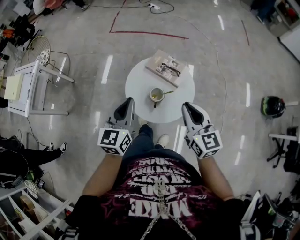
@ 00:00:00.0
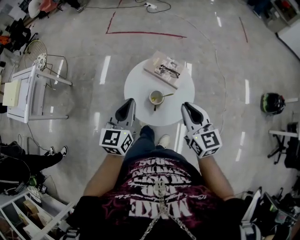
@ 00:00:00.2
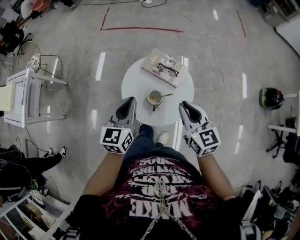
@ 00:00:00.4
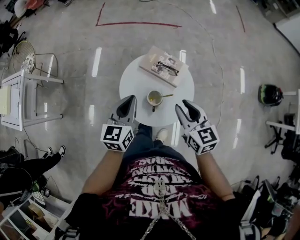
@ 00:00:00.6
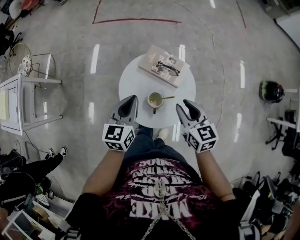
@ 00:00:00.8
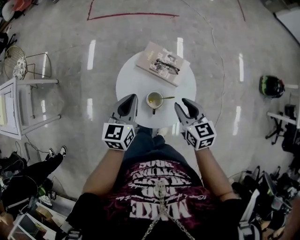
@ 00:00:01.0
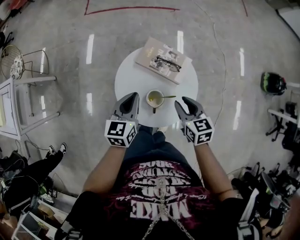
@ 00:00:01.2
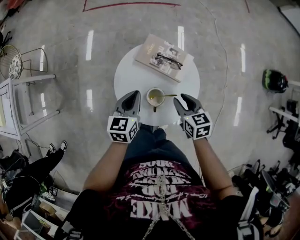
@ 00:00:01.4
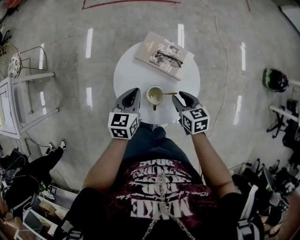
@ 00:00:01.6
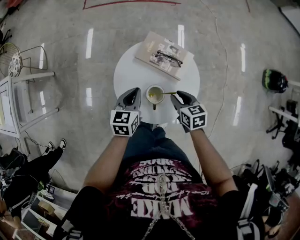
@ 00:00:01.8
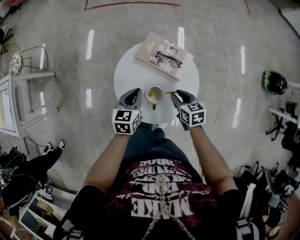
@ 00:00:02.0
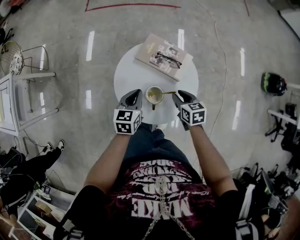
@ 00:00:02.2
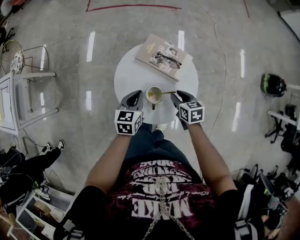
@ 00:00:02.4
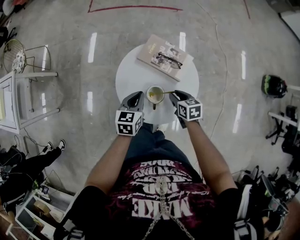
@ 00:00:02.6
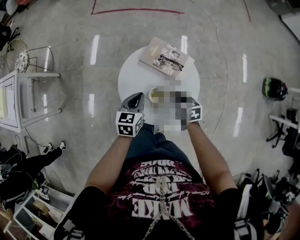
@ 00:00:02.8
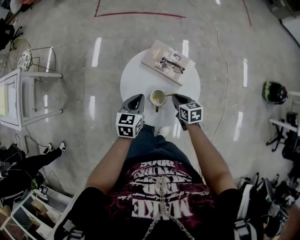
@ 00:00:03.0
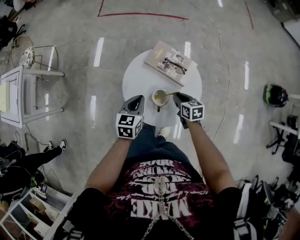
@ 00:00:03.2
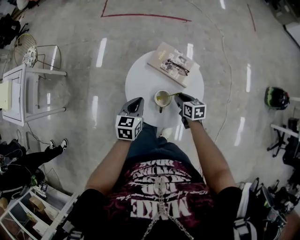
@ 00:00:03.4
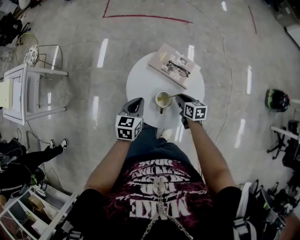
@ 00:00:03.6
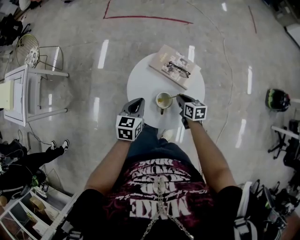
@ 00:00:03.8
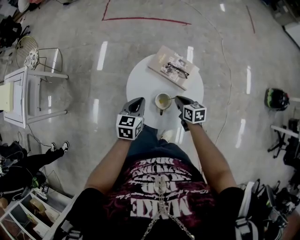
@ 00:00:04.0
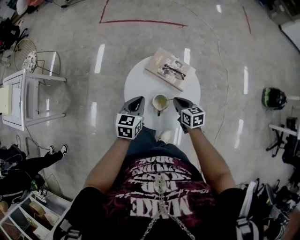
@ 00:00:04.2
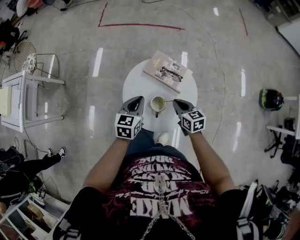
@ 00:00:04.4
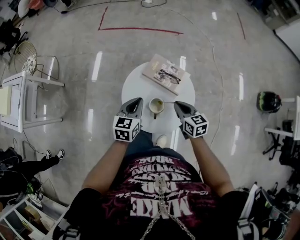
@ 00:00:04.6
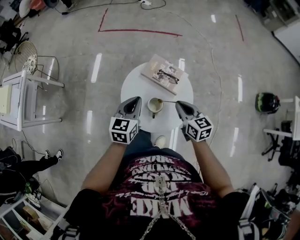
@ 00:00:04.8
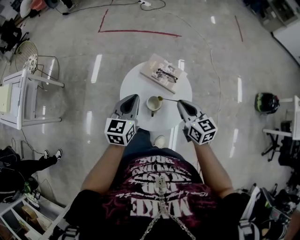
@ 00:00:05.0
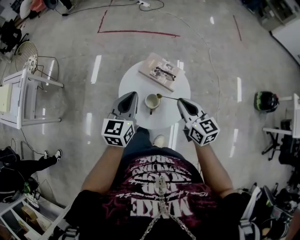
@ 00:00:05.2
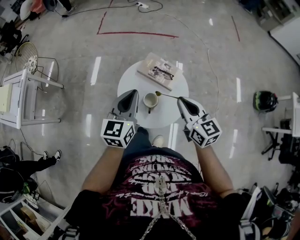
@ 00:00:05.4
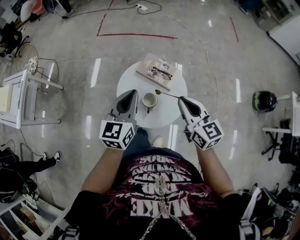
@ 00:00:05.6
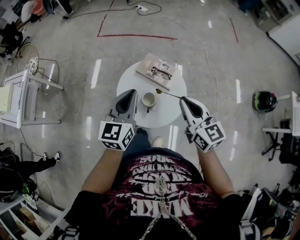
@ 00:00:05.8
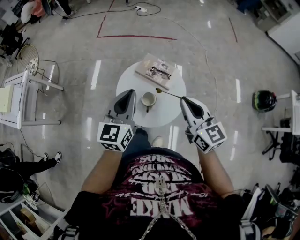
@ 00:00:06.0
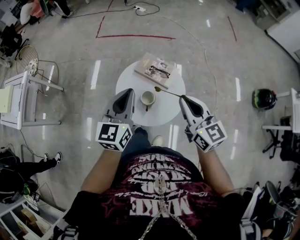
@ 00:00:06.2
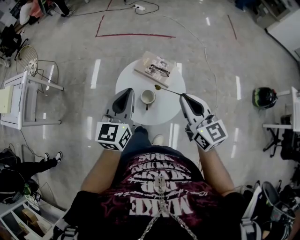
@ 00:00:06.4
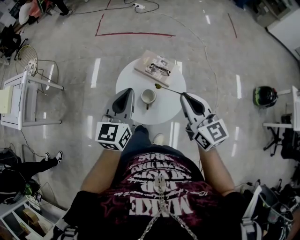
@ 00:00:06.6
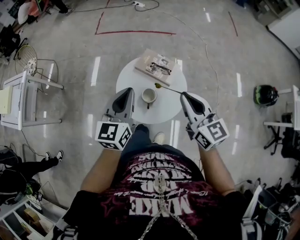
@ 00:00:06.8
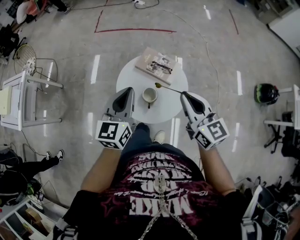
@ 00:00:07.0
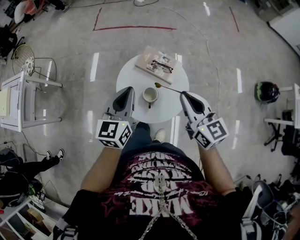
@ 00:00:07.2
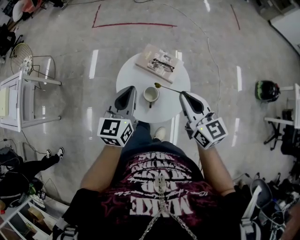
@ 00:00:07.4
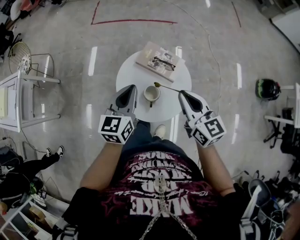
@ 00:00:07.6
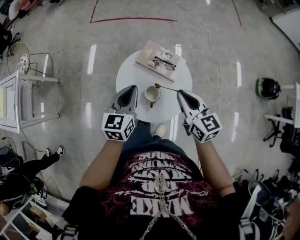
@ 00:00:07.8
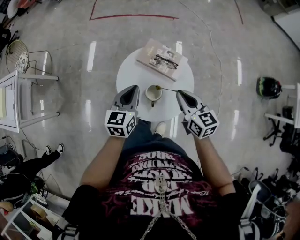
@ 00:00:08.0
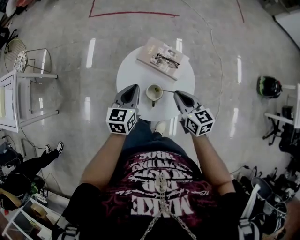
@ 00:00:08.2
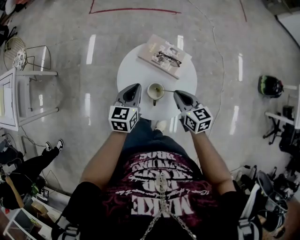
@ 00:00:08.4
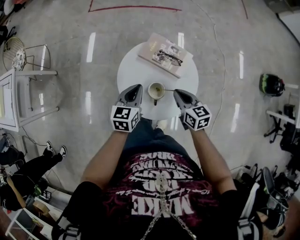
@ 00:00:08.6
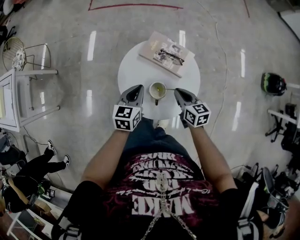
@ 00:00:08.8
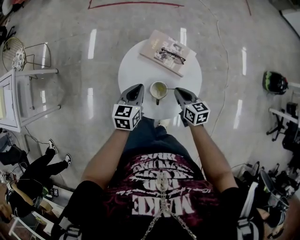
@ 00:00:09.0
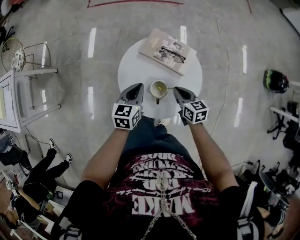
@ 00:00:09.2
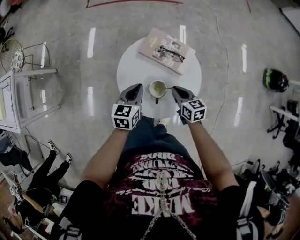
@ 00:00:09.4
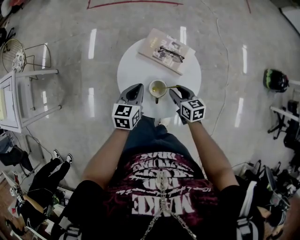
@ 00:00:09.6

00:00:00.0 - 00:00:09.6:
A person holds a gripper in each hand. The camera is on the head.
00:00:00.0 - 00:00:01.6: The grippers both shift downward and forward by approximately 25 cm. The left gripper turns by roughly 30 degrees. Meanwhile the right gripper tips its fingers downward by some 30 degrees, and opens.
00:00:01.6 - 00:00:03.2: The right gripper travels downward by approximately 5 cm.
00:00:03.2 - 00:00:04.8: The left gripper goes some 10 cm upward. Meanwhile the right gripper travels upward by approximately 20 cm, and rotates about 20 degrees.
00:00:04.8 - 00:00:06.4: The right gripper heads upward, covering approximately 20 cm, and changes its angle by roughly 20 degrees. Meanwhile the left gripper shifts approximately 15 cm upward and backward.
00:00:06.4 - 00:00:08.0: The two grippers go some 15 cm downward and forward.
00:00:08.0 - 00:00:09.6: The right gripper moves downward, roughly 20 cm, and opens its fingers. The left gripper is displaced downward by roughly 10 cm.

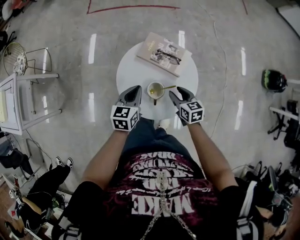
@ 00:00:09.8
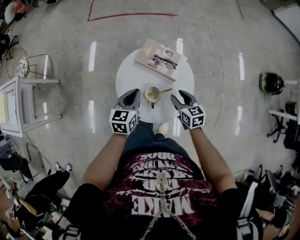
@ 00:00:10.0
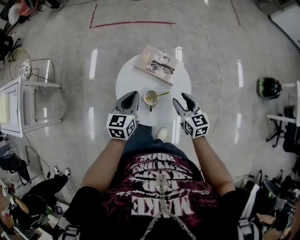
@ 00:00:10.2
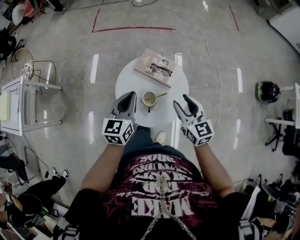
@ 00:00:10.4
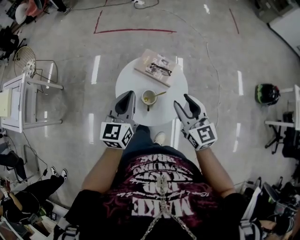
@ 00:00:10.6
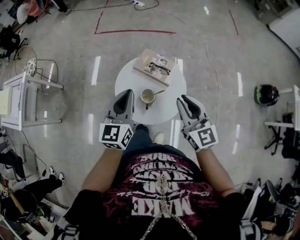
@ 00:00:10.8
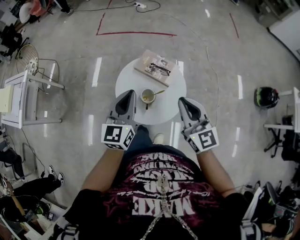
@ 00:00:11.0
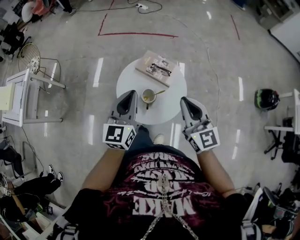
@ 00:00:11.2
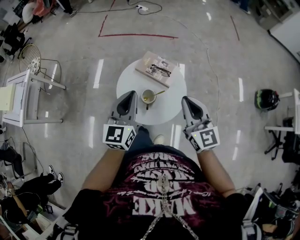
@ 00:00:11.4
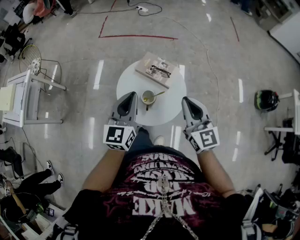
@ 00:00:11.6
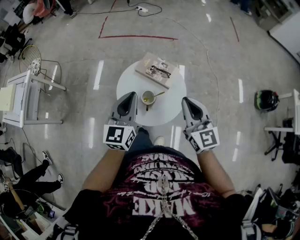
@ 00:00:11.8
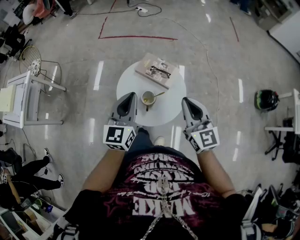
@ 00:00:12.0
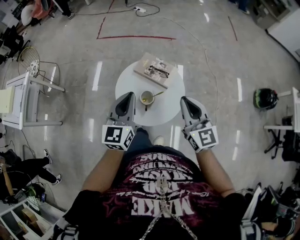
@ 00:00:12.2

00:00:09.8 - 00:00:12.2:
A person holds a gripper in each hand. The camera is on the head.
00:00:09.8 - 00:00:11.0: The two grippers go about 25 cm upward. The left gripper turns by about 30 degrees, while the right gripper tilts its fingers approximately 30 degrees upward, and closes.
00:00:11.0 - 00:00:12.2: The grippers make only small movements.

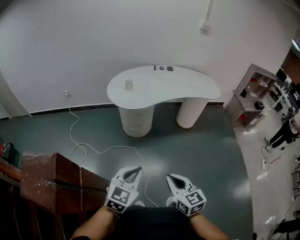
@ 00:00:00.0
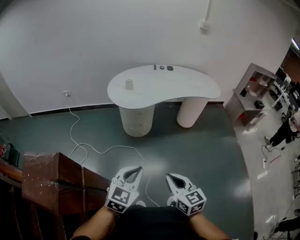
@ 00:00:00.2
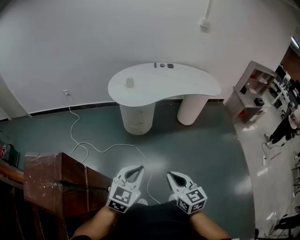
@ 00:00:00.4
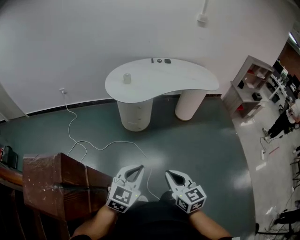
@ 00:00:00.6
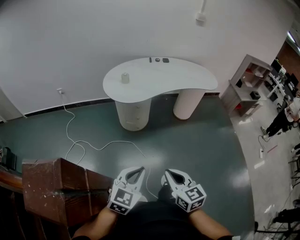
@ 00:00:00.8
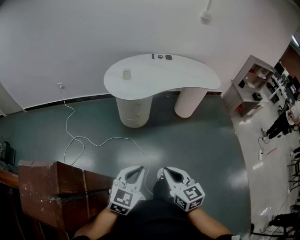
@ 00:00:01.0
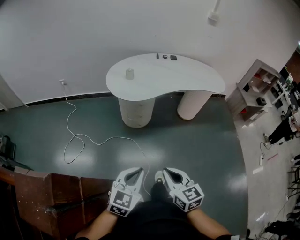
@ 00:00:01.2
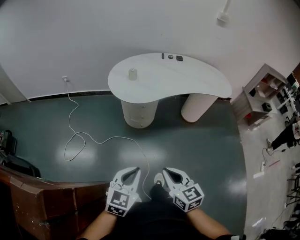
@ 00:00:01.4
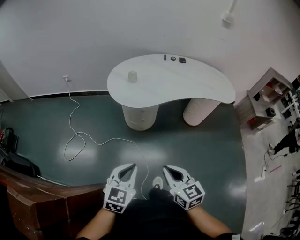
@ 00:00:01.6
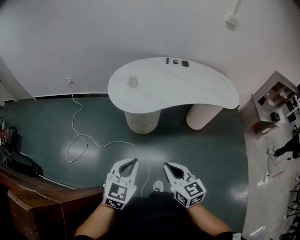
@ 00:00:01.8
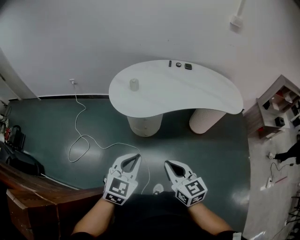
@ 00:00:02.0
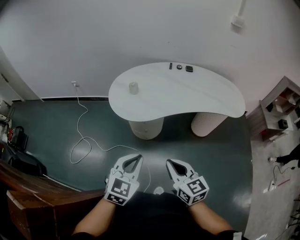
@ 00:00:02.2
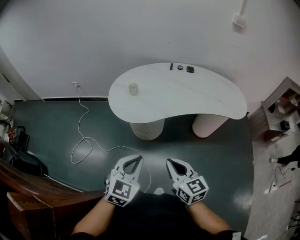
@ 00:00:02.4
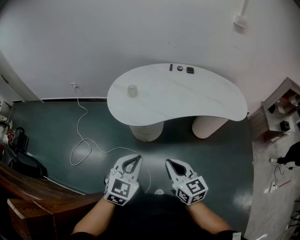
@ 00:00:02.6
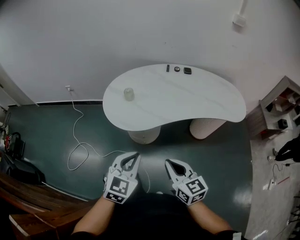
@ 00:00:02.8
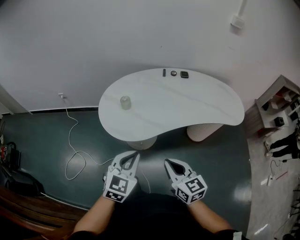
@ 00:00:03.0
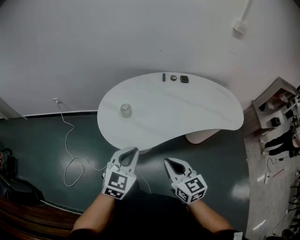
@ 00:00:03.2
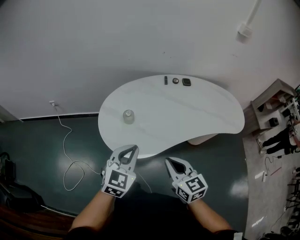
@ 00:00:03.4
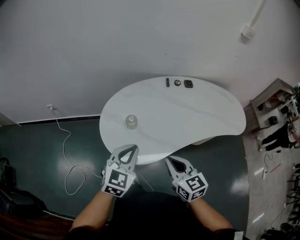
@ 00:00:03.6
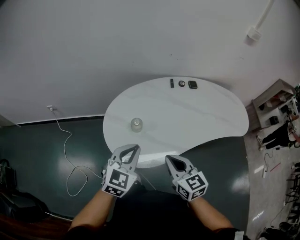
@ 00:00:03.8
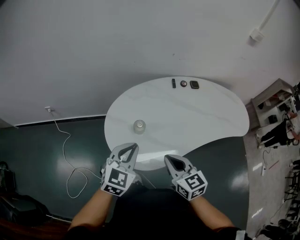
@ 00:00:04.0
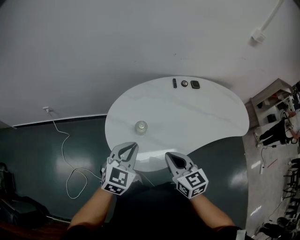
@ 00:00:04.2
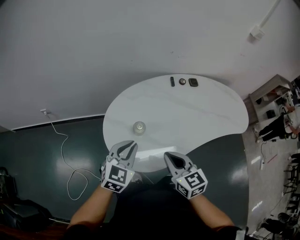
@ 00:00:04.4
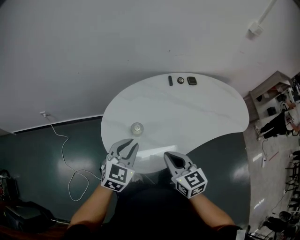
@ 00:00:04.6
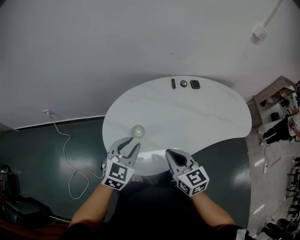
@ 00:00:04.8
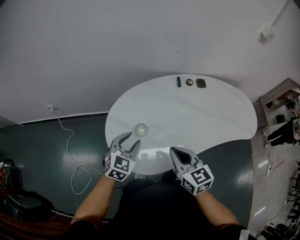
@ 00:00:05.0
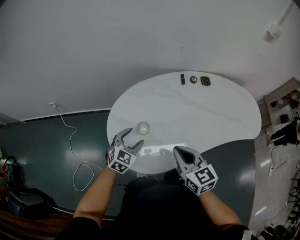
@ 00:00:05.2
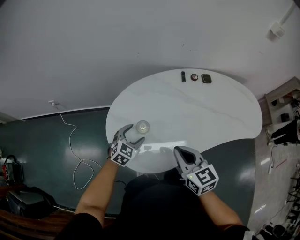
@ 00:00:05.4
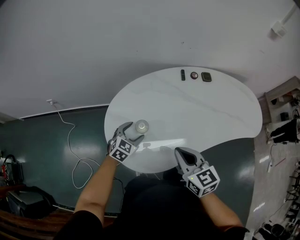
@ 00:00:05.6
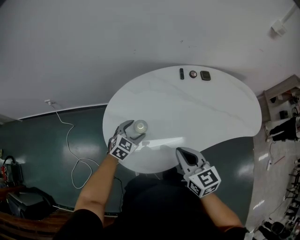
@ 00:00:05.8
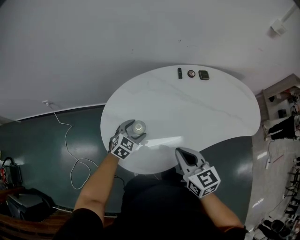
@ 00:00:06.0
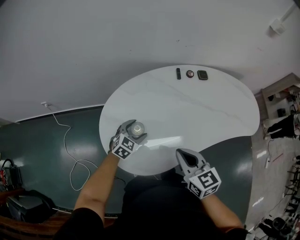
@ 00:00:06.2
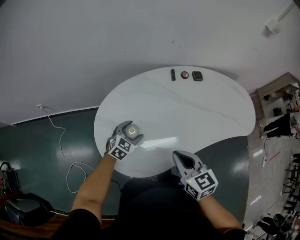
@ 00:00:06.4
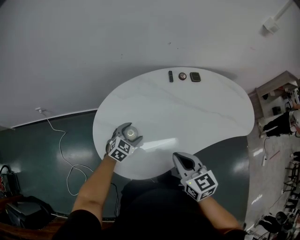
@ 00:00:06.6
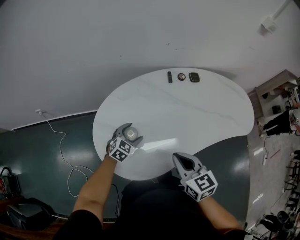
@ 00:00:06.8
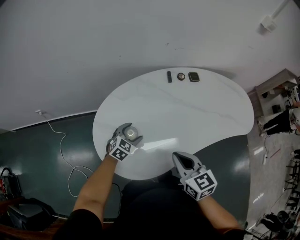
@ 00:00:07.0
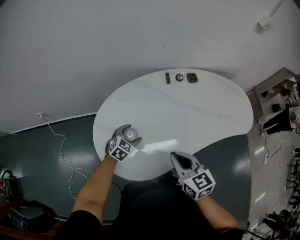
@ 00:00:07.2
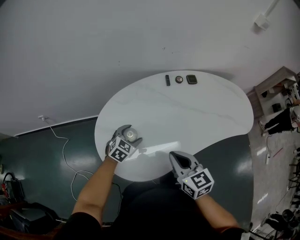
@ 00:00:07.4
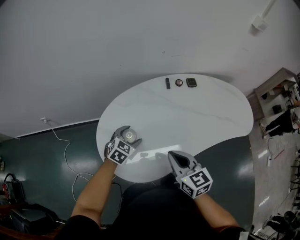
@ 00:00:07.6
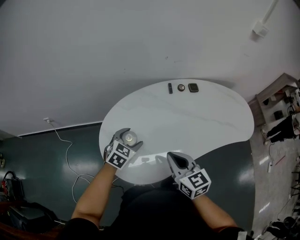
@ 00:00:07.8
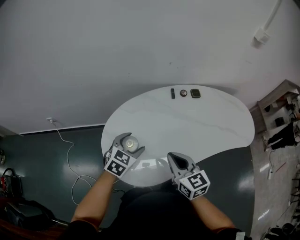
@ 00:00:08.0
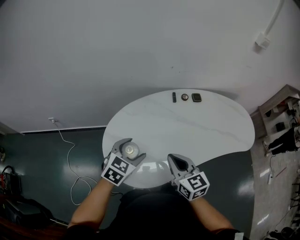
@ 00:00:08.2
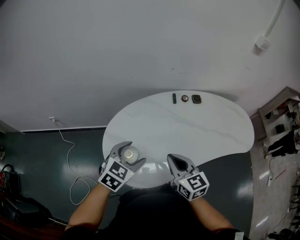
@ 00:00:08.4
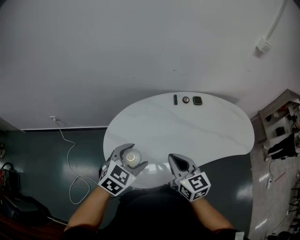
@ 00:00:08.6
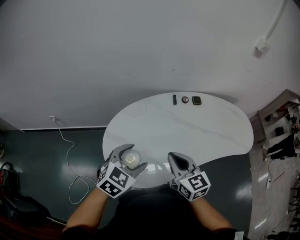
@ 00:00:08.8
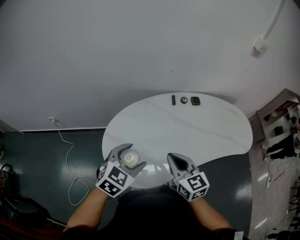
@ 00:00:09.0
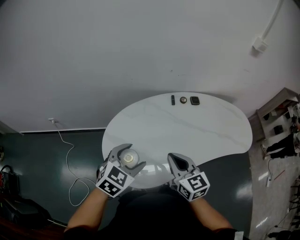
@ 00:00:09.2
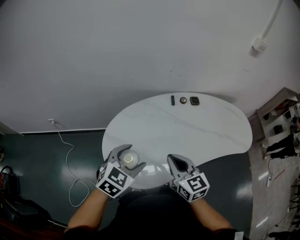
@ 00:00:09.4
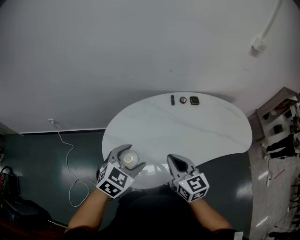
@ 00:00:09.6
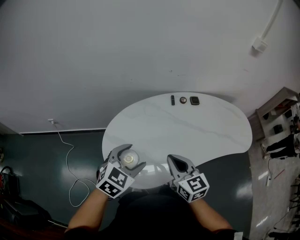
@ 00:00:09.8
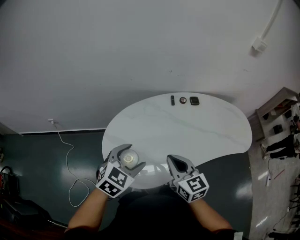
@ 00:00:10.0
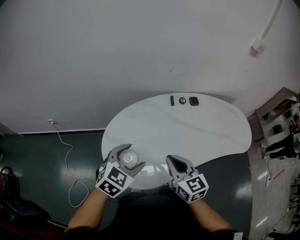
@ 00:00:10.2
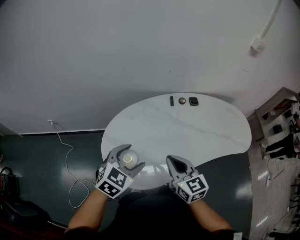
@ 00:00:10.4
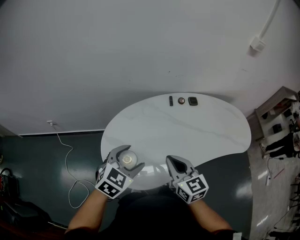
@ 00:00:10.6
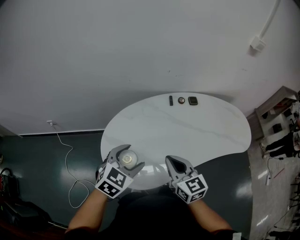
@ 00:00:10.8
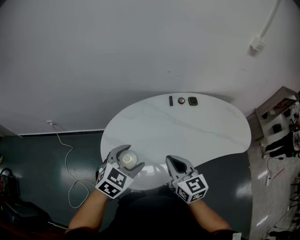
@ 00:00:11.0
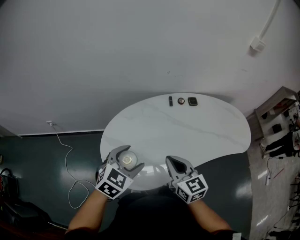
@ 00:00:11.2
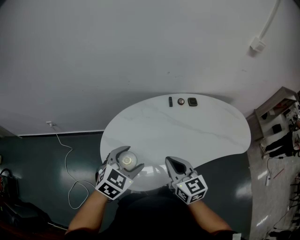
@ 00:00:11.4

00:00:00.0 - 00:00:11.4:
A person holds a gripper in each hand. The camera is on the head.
00:00:00.0 - 00:00:01.4: Both grippers travel together forward, approximately 10 cm.
00:00:01.4 - 00:00:02.8: The right gripper moves forward and to the right, roughly 25 cm. Meanwhile the left gripper moves forward, about 25 cm.
00:00:02.8 - 00:00:04.2: Both grippers move forward and to the left, about 35 cm.
00:00:04.2 - 00:00:05.6: The right gripper shifts roughly 5 cm forward; the left gripper moves downward and forward, roughly 20 cm, and opens.
00:00:05.6 - 00:00:07.2: The left gripper shifts by roughly 5 cm.
00:00:07.2 - 00:00:08.6: The left gripper moves upward and backward, some 25 cm; the right gripper moves upward, roughly 5 cm.
00:00:08.6 - 00:00:10.0: The grippers stay close to where they were, moving slightly.
00:00:10.0 - 00:00:11.4: Neither gripper changes place.
